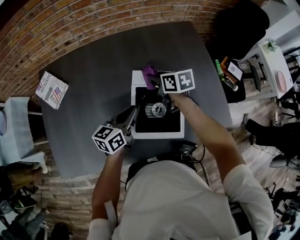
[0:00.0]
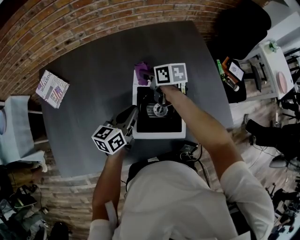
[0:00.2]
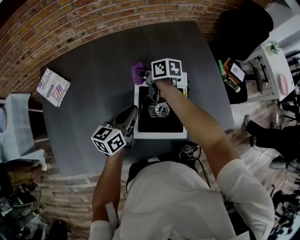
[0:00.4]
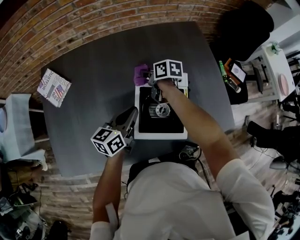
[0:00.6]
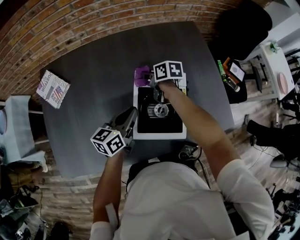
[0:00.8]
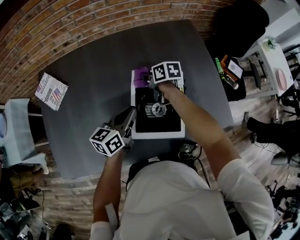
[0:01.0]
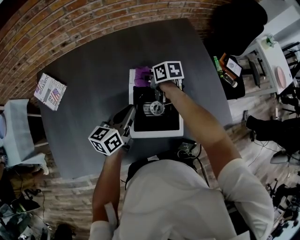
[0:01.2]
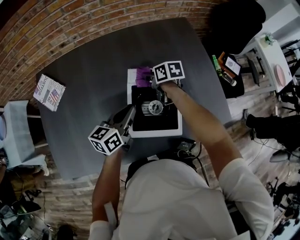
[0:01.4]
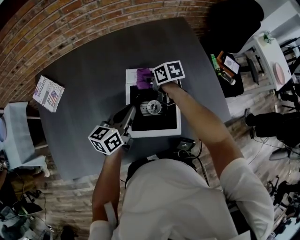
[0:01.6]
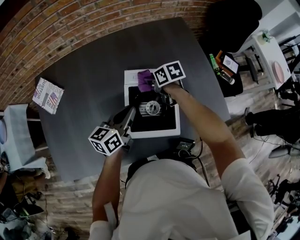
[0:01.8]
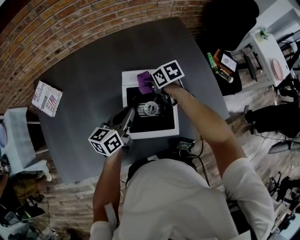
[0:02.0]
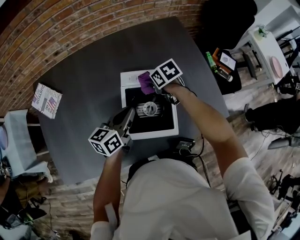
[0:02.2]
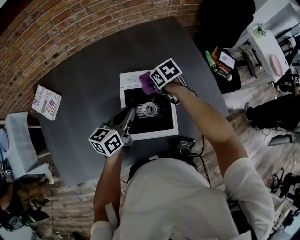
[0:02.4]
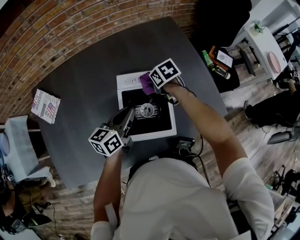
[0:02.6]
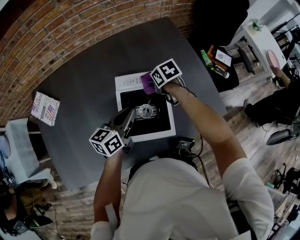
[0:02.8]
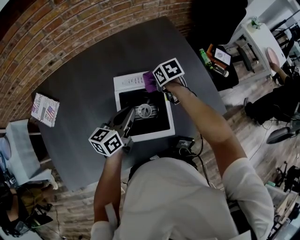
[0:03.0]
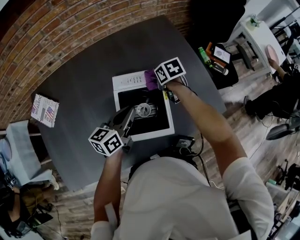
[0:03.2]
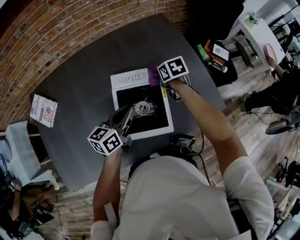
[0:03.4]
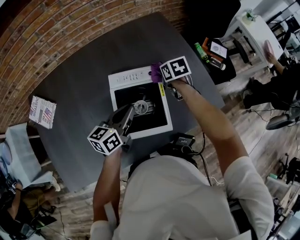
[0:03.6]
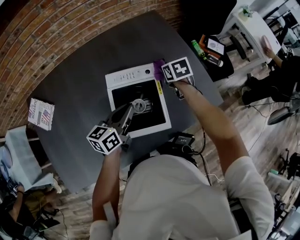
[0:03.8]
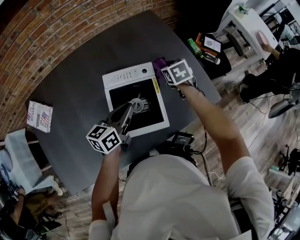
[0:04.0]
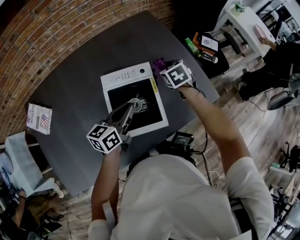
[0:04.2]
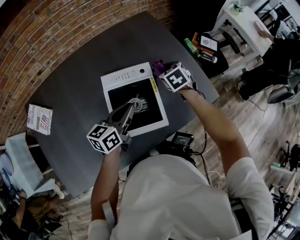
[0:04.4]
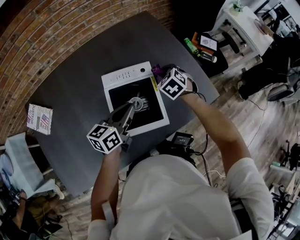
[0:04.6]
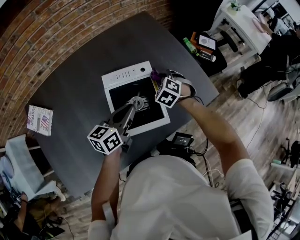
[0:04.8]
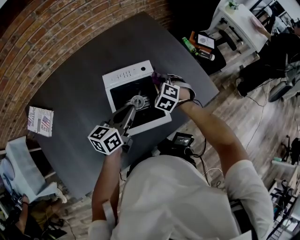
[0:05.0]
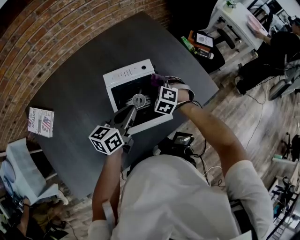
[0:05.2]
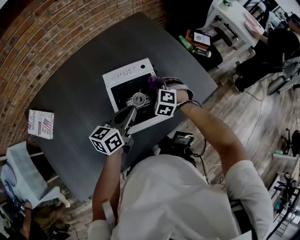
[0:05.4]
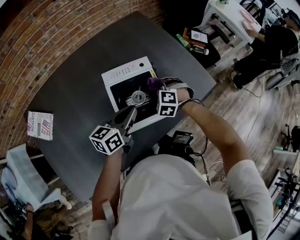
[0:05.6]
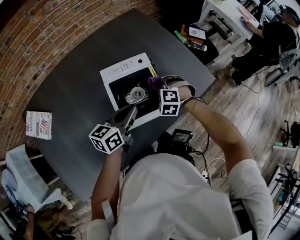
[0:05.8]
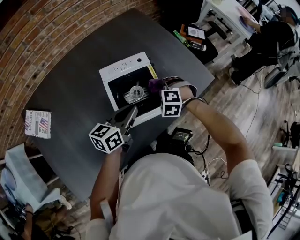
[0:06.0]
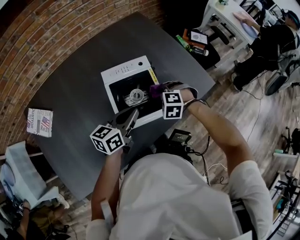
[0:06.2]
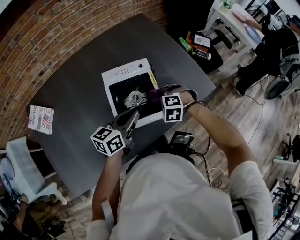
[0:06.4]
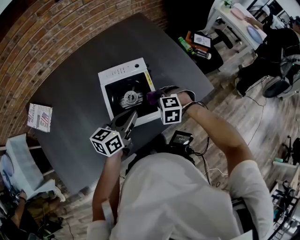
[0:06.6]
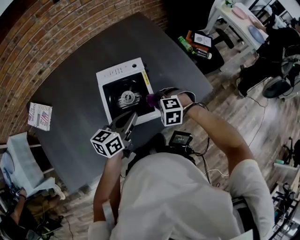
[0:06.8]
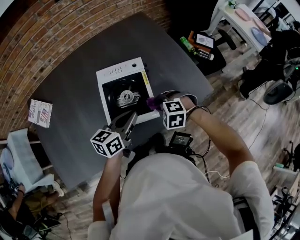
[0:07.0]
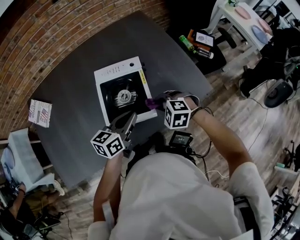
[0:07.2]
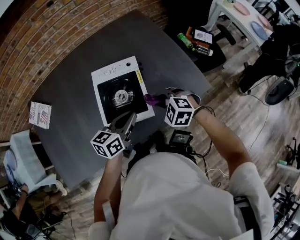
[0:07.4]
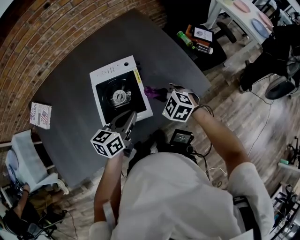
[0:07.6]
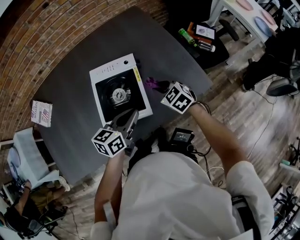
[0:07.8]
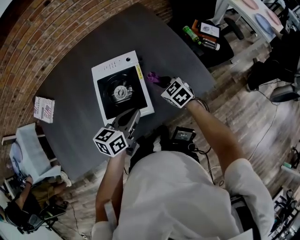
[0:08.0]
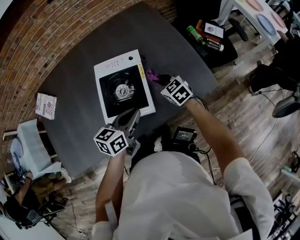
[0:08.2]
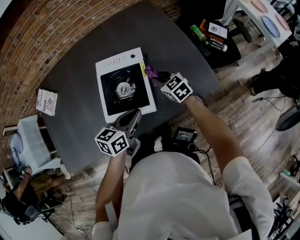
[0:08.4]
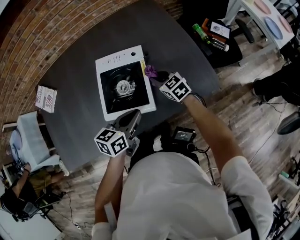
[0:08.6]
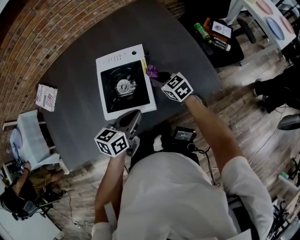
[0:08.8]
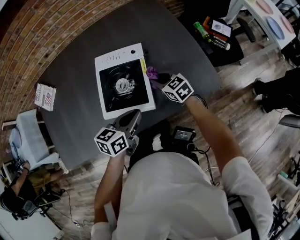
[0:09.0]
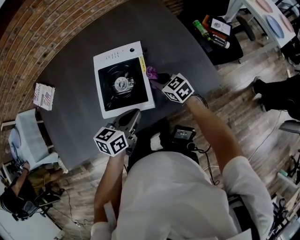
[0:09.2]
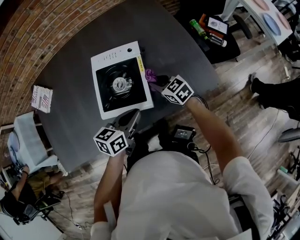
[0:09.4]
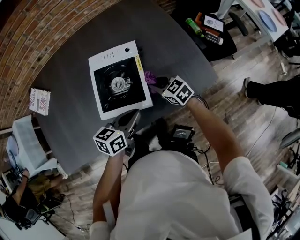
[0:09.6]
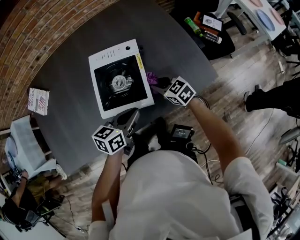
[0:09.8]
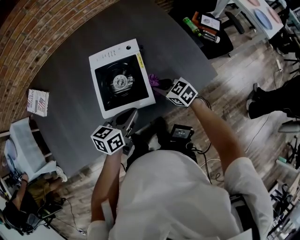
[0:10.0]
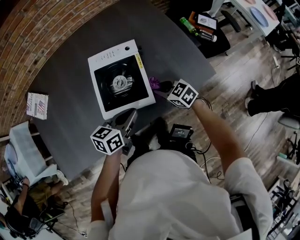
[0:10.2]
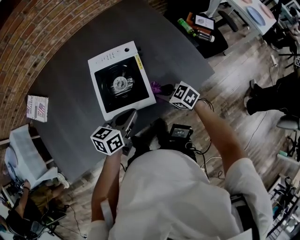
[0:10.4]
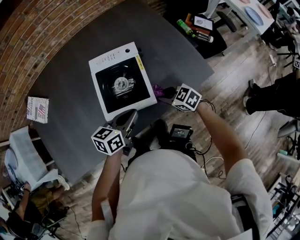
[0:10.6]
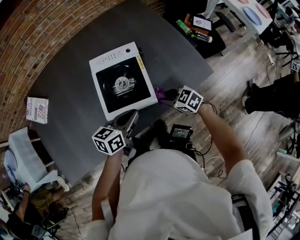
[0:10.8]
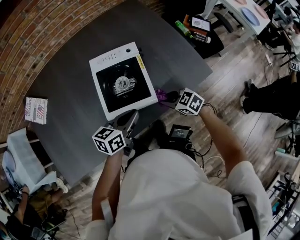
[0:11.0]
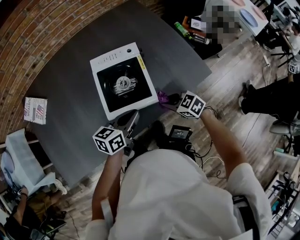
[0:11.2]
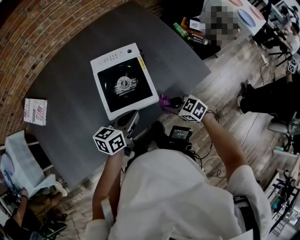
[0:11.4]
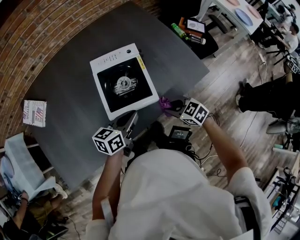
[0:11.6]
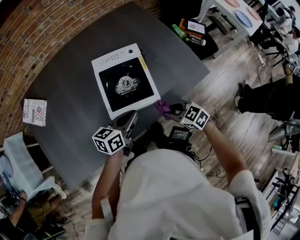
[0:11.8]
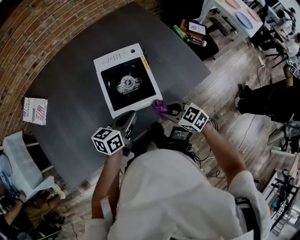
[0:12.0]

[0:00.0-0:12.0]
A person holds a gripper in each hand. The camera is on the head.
0:00.0 to 0:01.6: The right gripper is displaced downward by some 5 cm.
0:01.6 to 0:03.0: The right gripper goes roughly 10 cm to the right.
0:03.0 to 0:04.4: The right gripper moves to the right, some 10 cm, and turns by approximately 30 degrees.
0:04.4 to 0:06.0: The right gripper shifts about 15 cm backward, and rolls counterclockwise, seen from behind, by about 50 degrees. The left gripper shifts approximately 5 cm backward.
0:06.0 to 0:07.6: The right gripper ends up approximately 10 cm from where it was, and rotates about 30 degrees; the left gripper shifts by approximately 10 cm.
0:07.6 to 0:09.0: The right gripper moves forward and downward, about 10 cm, and swivels roughly 30 degrees.
0:09.0 to 0:10.4: The right gripper shifts some 10 cm backward.
0:10.4 to 0:12.0: The right gripper heads backward and upward, covering some 10 cm.

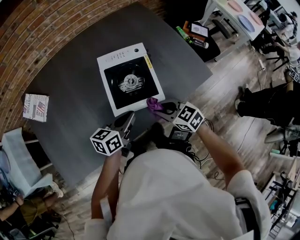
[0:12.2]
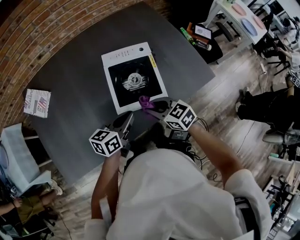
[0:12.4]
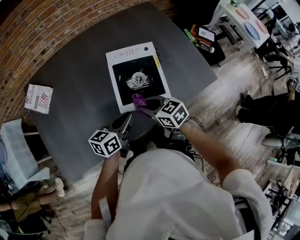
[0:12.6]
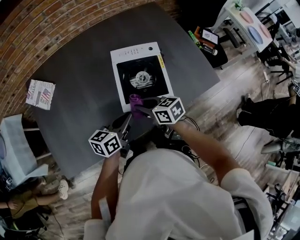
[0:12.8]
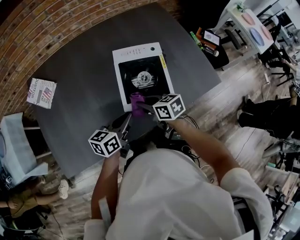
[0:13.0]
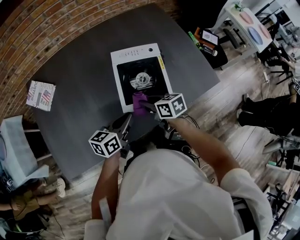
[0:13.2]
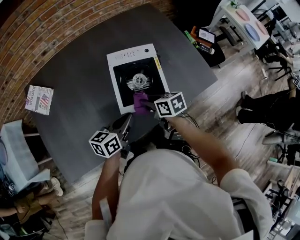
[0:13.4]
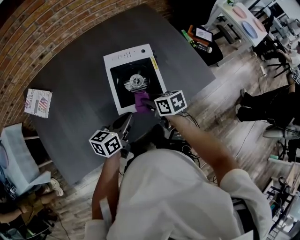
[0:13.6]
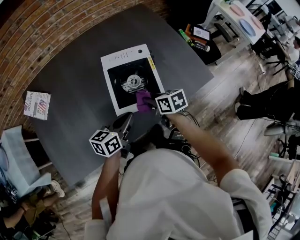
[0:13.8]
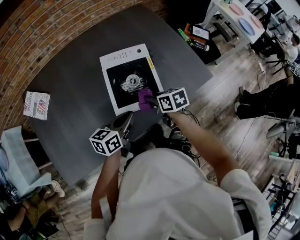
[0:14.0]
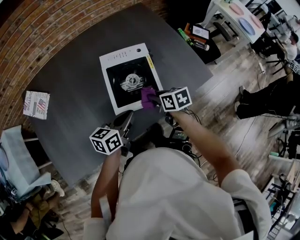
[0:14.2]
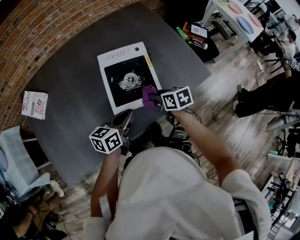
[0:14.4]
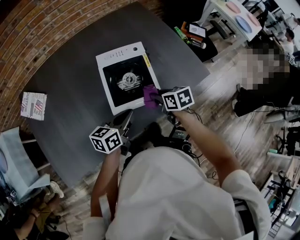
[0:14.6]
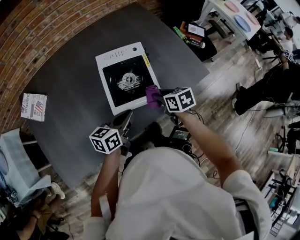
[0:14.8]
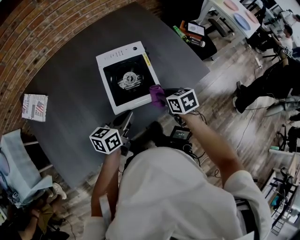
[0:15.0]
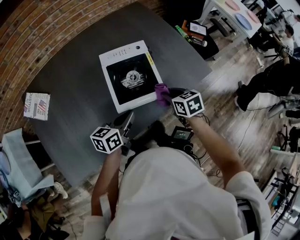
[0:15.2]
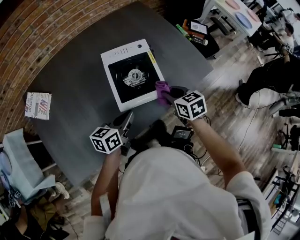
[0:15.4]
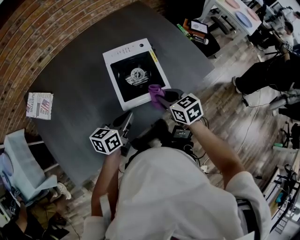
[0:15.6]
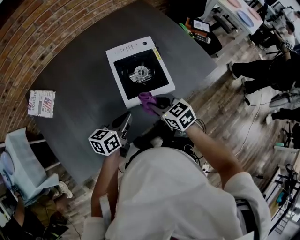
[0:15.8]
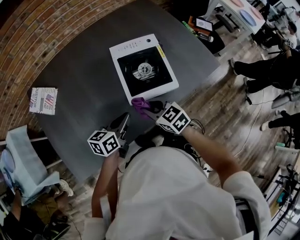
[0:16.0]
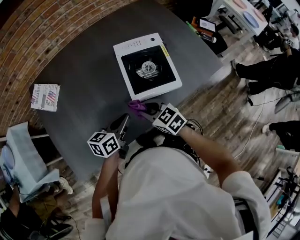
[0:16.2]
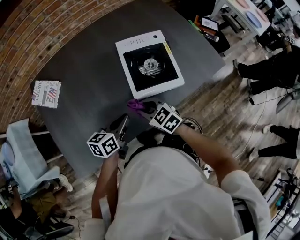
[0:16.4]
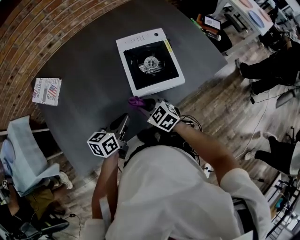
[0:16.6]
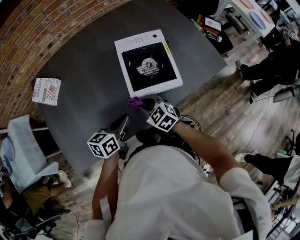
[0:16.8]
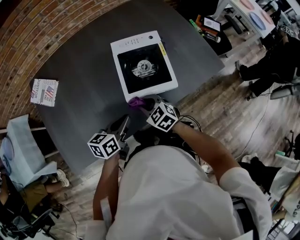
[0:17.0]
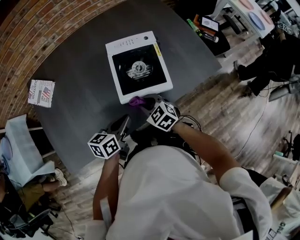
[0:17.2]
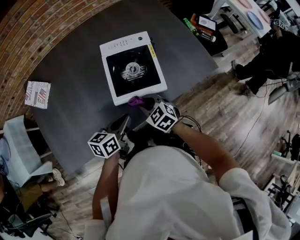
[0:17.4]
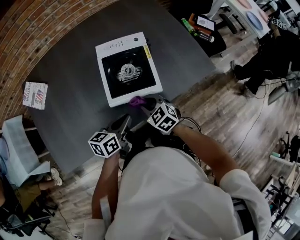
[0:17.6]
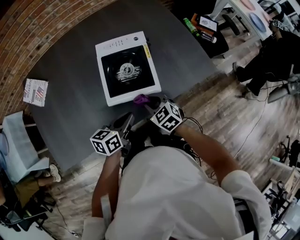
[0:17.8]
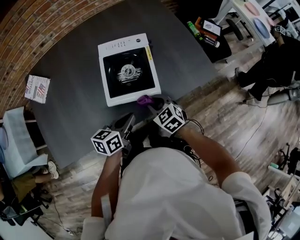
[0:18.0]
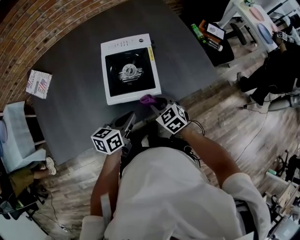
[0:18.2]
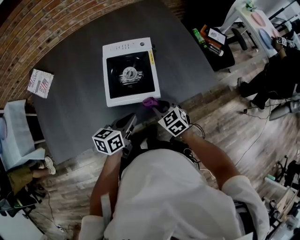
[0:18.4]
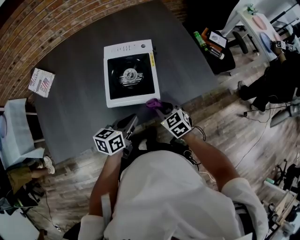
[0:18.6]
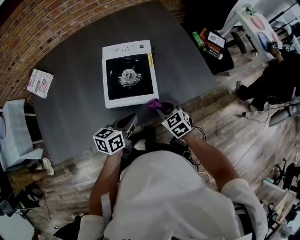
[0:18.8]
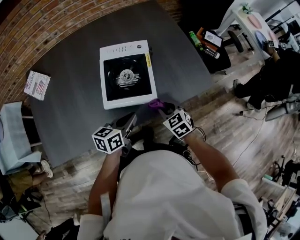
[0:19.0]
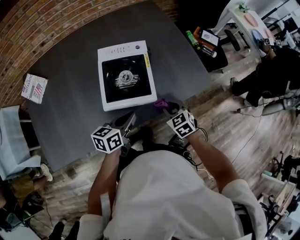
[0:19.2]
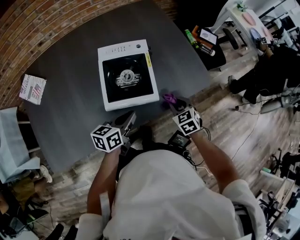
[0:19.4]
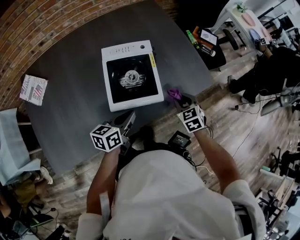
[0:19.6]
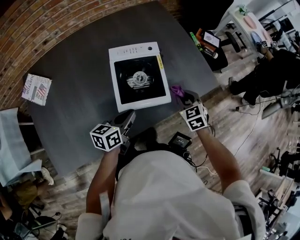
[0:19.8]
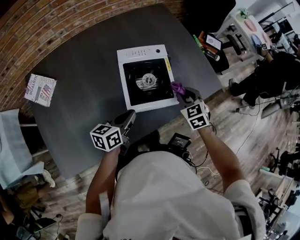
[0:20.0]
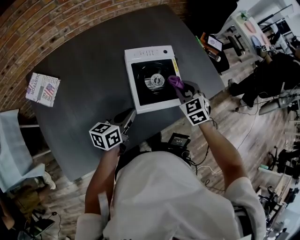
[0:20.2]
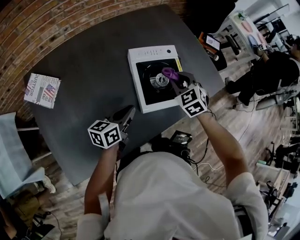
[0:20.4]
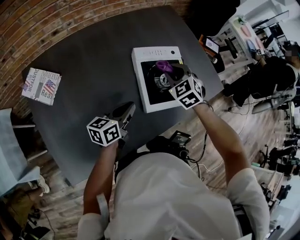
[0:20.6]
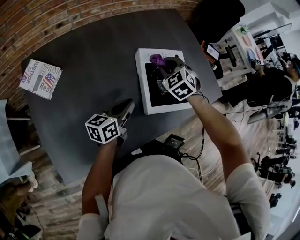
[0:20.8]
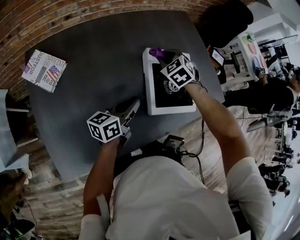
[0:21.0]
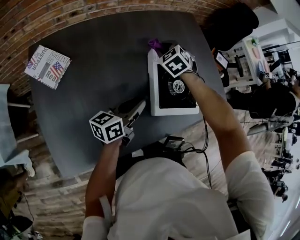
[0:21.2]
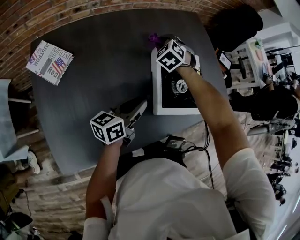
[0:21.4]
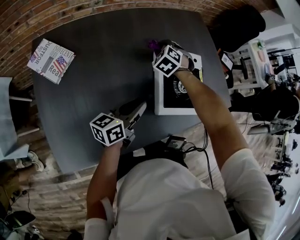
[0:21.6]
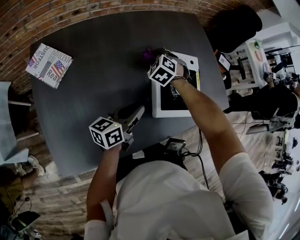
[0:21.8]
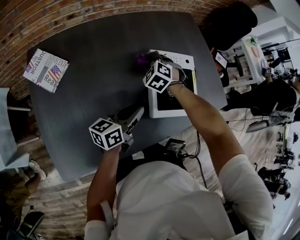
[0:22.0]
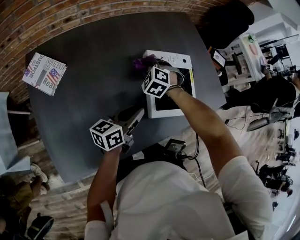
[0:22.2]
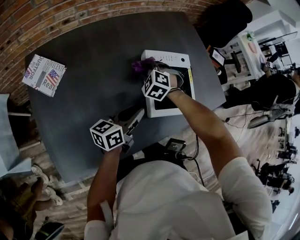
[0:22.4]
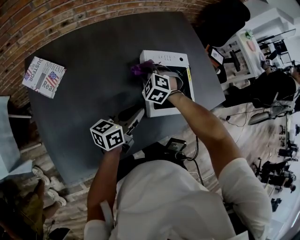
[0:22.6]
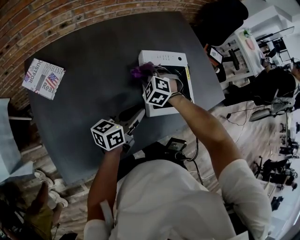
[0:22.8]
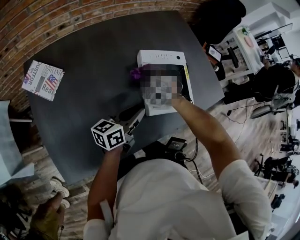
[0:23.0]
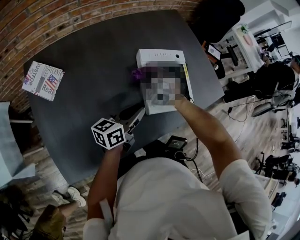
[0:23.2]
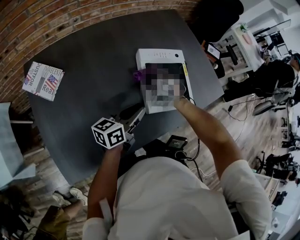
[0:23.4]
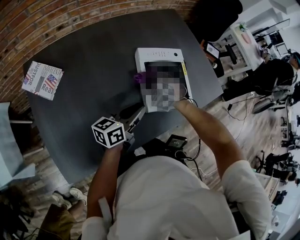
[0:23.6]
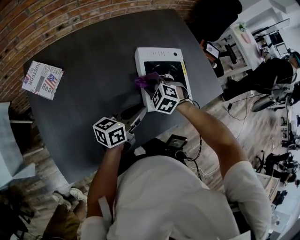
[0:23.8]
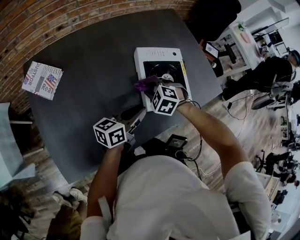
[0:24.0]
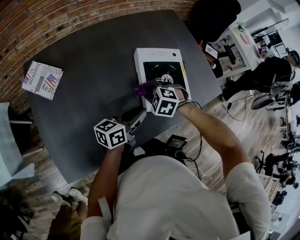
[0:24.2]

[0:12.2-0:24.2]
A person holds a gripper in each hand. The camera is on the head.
0:12.2 to 0:13.8: The right gripper goes roughly 5 cm forward, moves some 10 cm to the left and comes back, and changes its angle by roughly 30 degrees.
0:13.8 to 0:15.2: The right gripper shifts some 10 cm to the right.
0:15.2 to 0:16.6: The right gripper goes some 20 cm to the left, and turns by some 40 degrees, while the left gripper shifts approximately 10 cm to the left and backward.
0:16.6 to 0:18.2: Both grippers move to the right, roughly 15 cm.
0:18.2 to 0:19.8: The left gripper shifts approximately 5 cm to the left, while the right gripper moves to the right and forward, about 10 cm, and swivels some 20 degrees.
0:19.8 to 0:21.2: The right gripper travels to the left by some 35 cm, and turns by roughly 30 degrees, while the left gripper heads to the left, covering approximately 15 cm.
0:21.2 to 0:22.6: The right gripper goes roughly 10 cm backward and downward.
0:22.6 to 0:24.2: The right gripper is displaced backward and to the right by about 10 cm.
